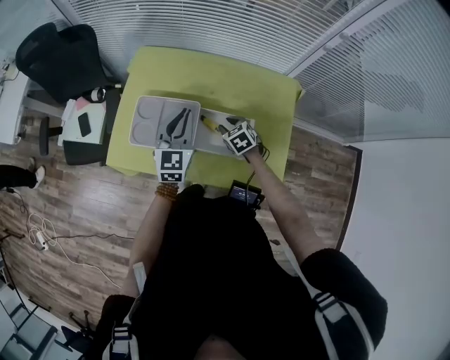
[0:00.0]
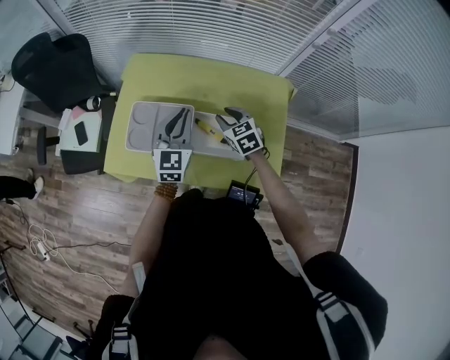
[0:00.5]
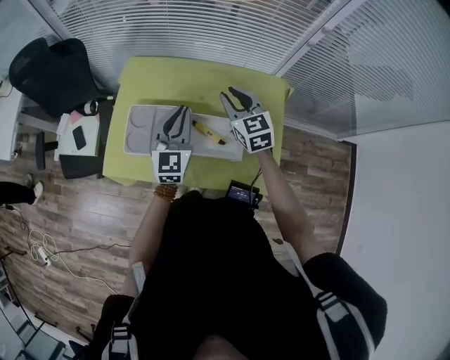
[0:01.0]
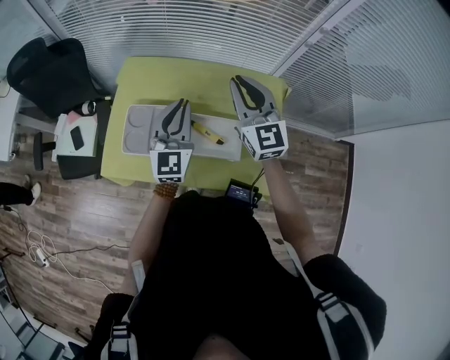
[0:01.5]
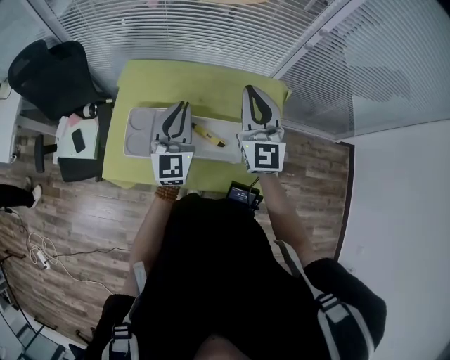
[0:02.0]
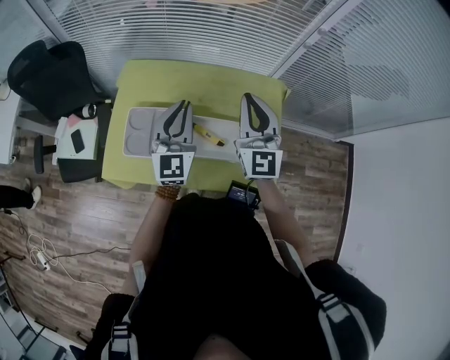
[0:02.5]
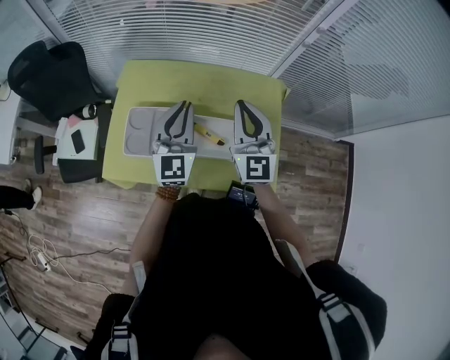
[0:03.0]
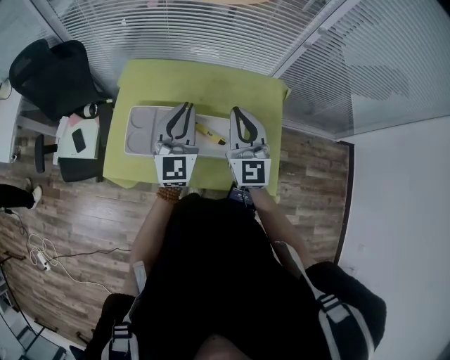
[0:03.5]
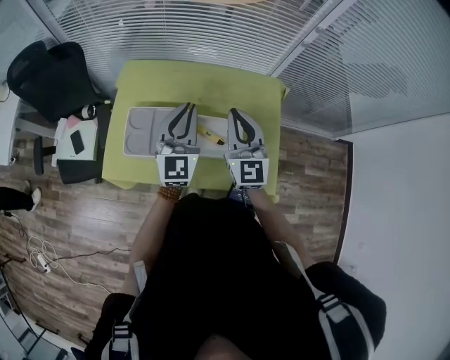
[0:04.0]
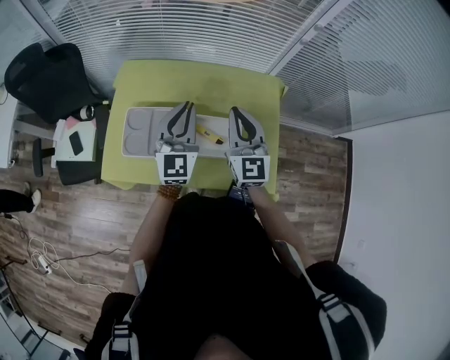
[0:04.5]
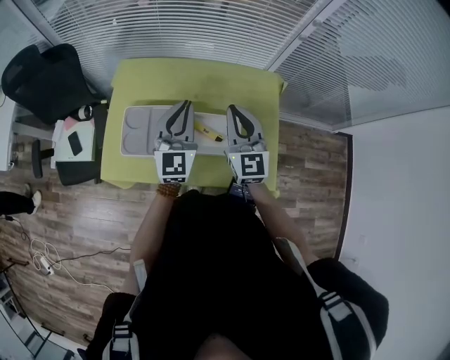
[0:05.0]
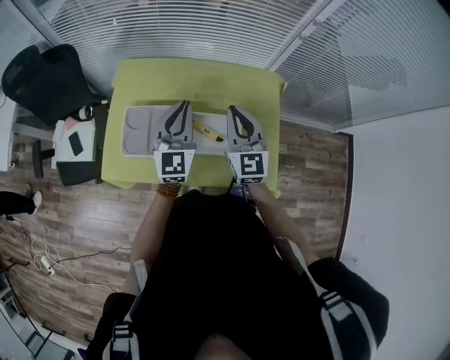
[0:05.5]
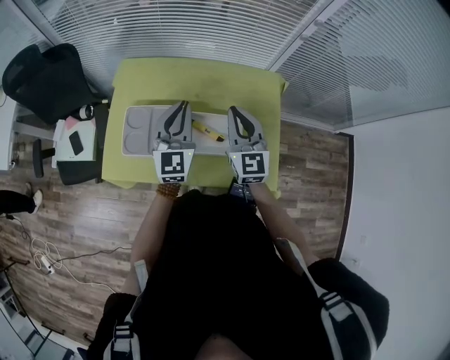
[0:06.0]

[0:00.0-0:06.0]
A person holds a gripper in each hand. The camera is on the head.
0:00.0 to 0:02.0: The right gripper is displaced upward by about 35 cm, tilts its fingers roughly 60 degrees upward, and closes its fingers, while the left gripper moves upward, approximately 10 cm.
0:02.0 to 0:04.0: The right gripper is displaced downward by about 5 cm.
0:04.0 to 0:06.0: There are only small adjustments of the grippers.

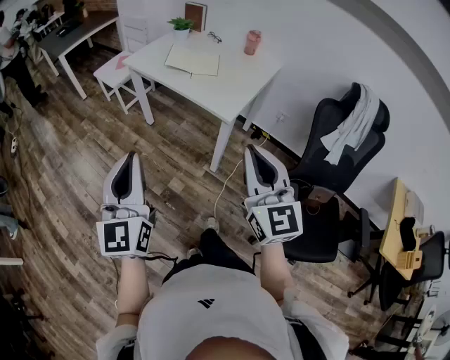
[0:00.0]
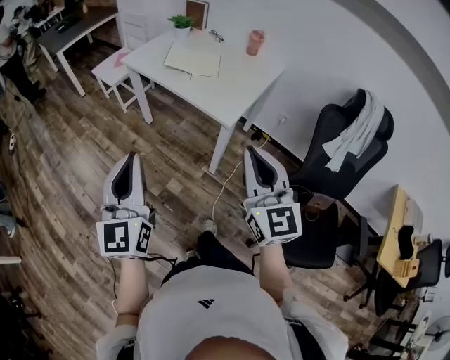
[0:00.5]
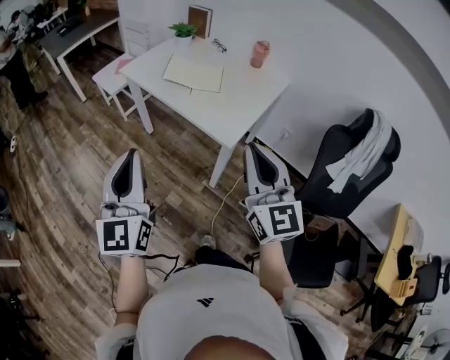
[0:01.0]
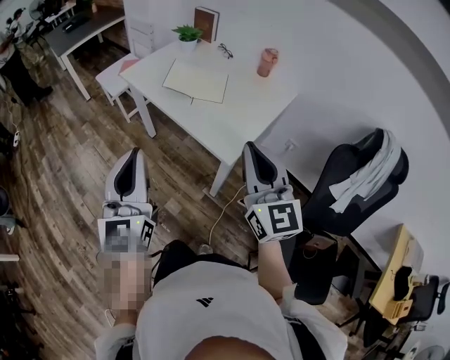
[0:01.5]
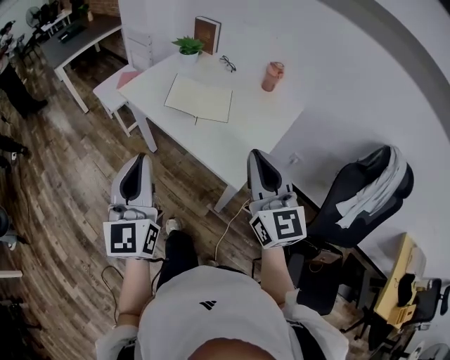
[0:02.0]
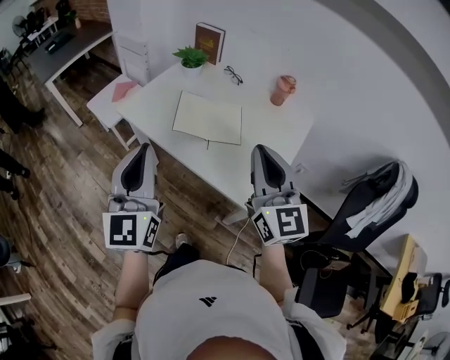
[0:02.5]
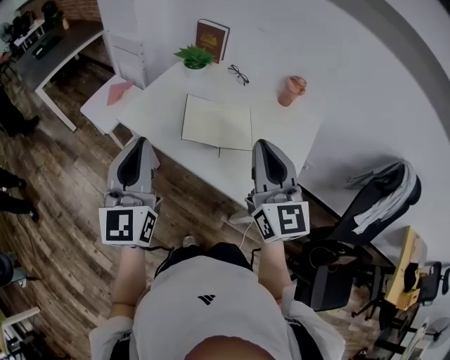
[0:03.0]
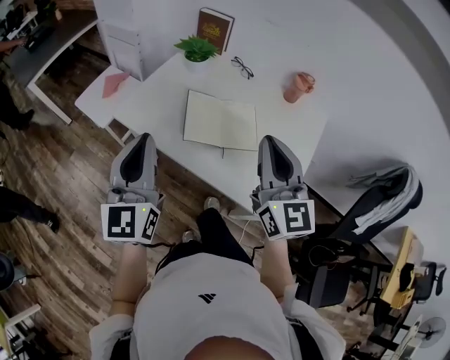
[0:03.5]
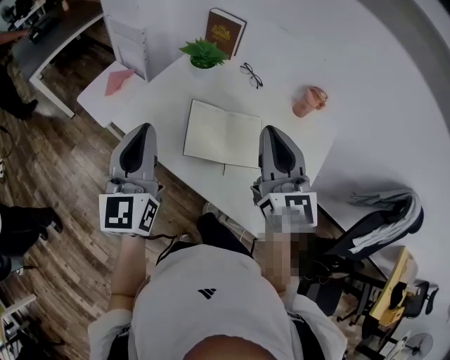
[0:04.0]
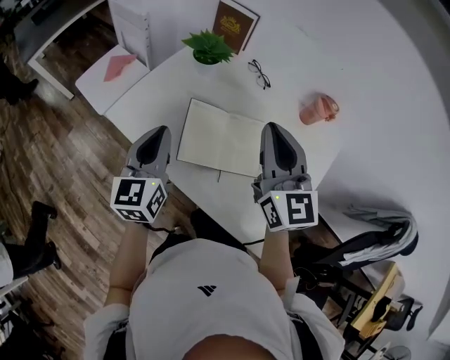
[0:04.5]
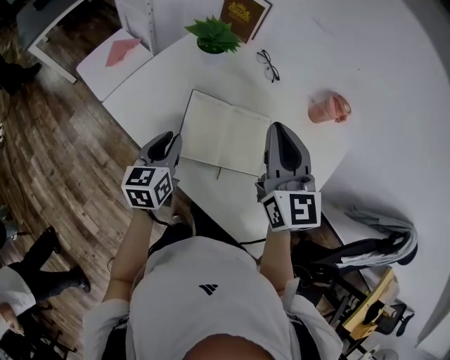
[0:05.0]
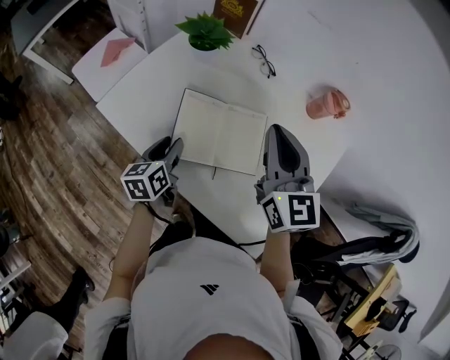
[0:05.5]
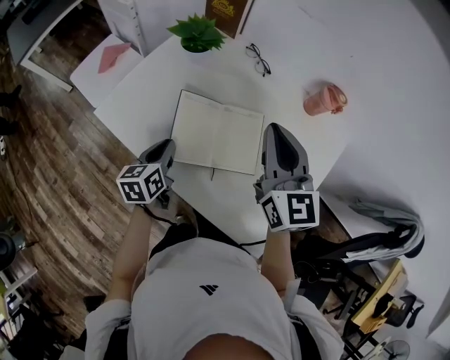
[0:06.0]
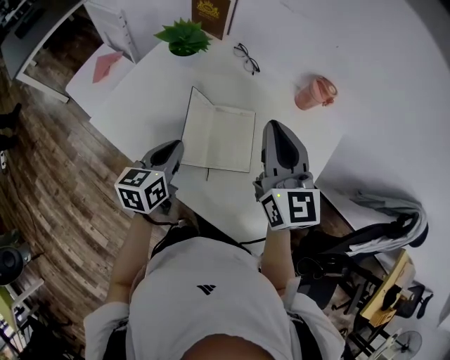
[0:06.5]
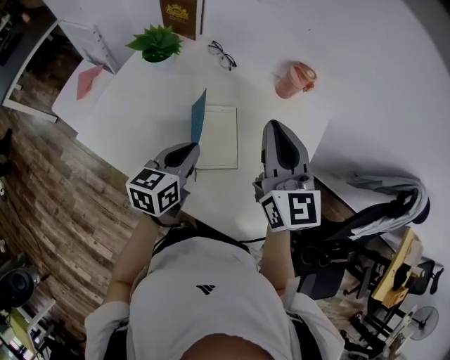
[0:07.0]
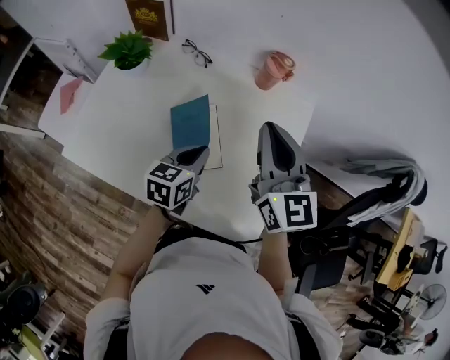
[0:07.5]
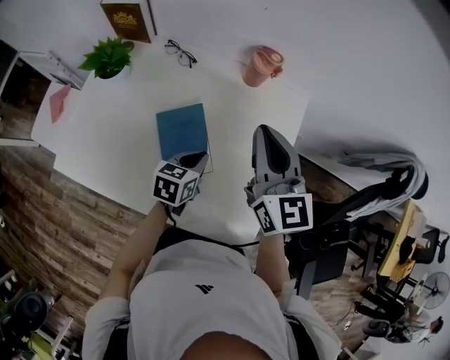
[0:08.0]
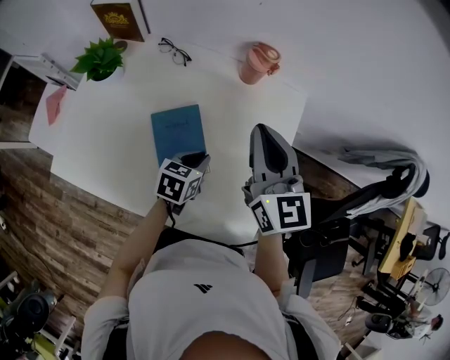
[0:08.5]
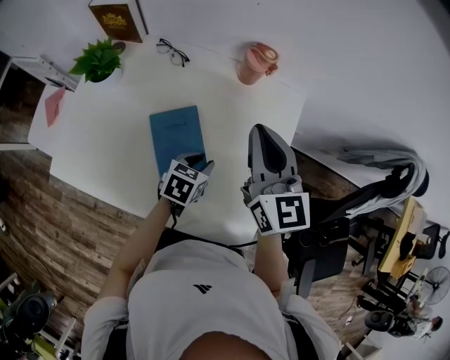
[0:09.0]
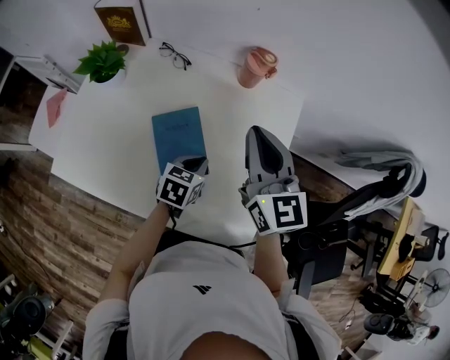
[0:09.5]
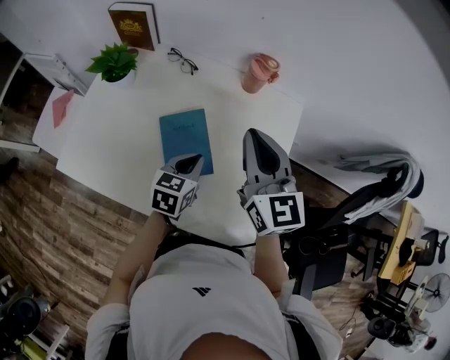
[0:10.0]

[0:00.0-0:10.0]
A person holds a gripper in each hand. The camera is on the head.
0:00.0 to 0:02.0: Both grippers travel together forward, roughly 30 cm.
0:02.0 to 0:04.0: The two grippers go about 35 cm forward.
0:04.0 to 0:06.0: The left gripper heads downward, covering about 25 cm, points its fingers about 40 degrees further downward, and opens and closes again. The right gripper shifts roughly 15 cm forward, downward and to the right.
0:06.0 to 0:08.0: The left gripper goes upward and returns, roughly 10 cm each way, and rotates some 40 degrees. Meanwhile the right gripper ends up some 15 cm from where it was.
0:08.0 to 0:10.0: The left gripper opens, then closes again.

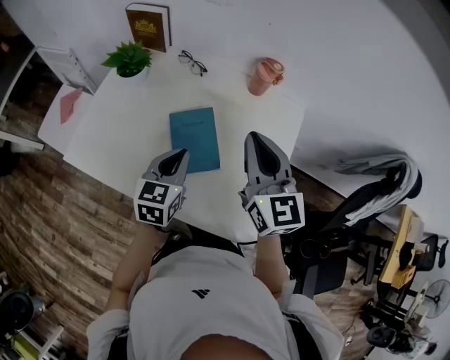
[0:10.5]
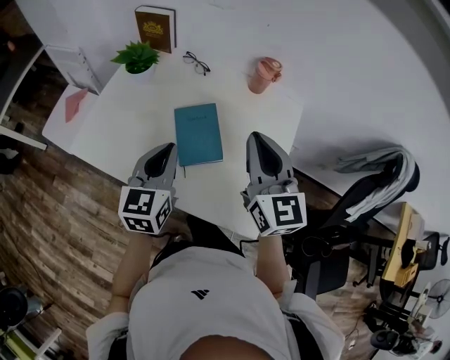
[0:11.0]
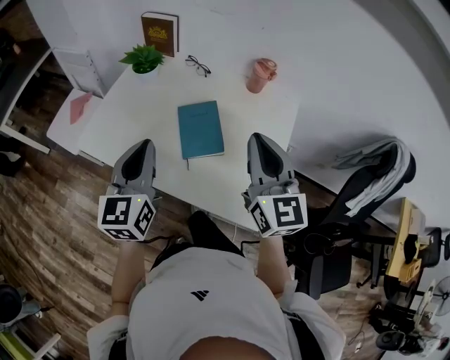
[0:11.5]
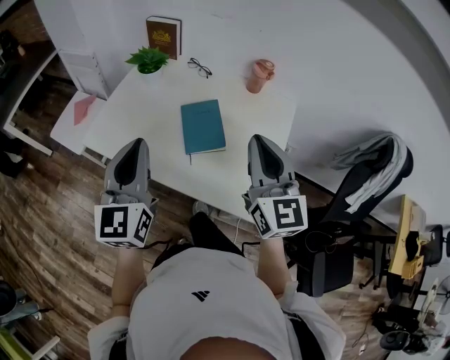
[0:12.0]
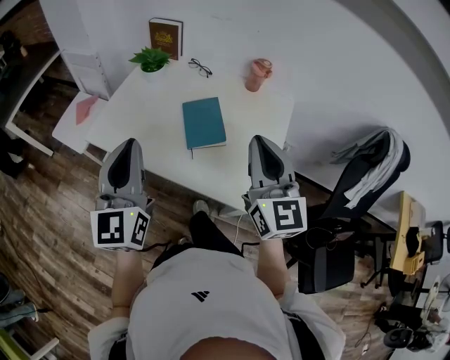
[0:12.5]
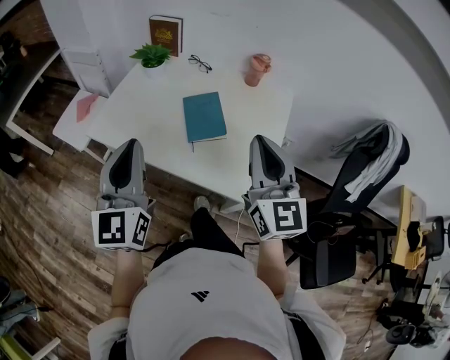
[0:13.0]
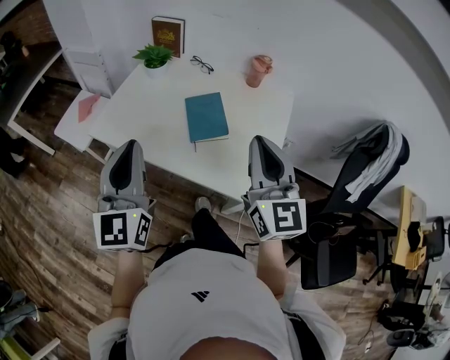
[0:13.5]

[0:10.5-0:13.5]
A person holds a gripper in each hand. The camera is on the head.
0:10.5 to 0:12.0: The left gripper is displaced upward, backward and to the left by approximately 25 cm, and changes its angle by about 30 degrees. The right gripper is displaced backward and upward by about 15 cm.
0:12.0 to 0:13.5: The two grippers go some 5 cm backward.

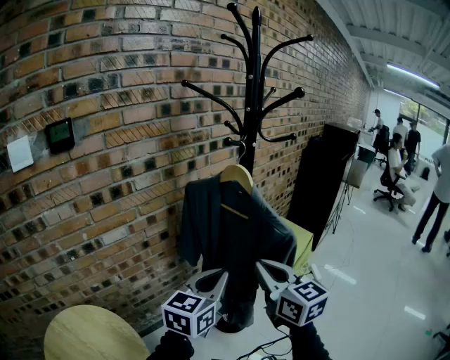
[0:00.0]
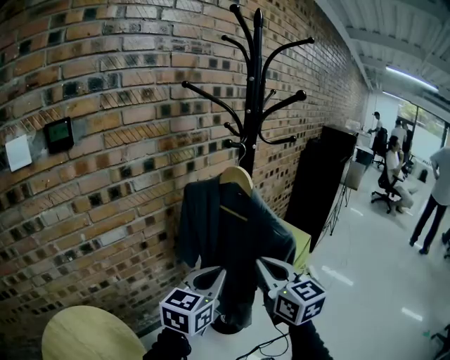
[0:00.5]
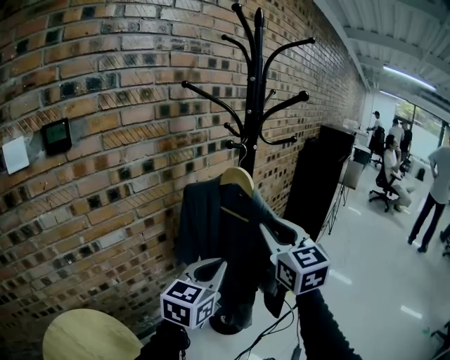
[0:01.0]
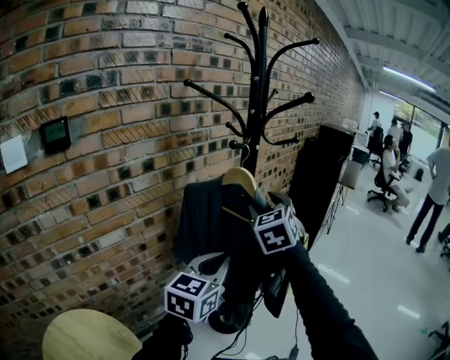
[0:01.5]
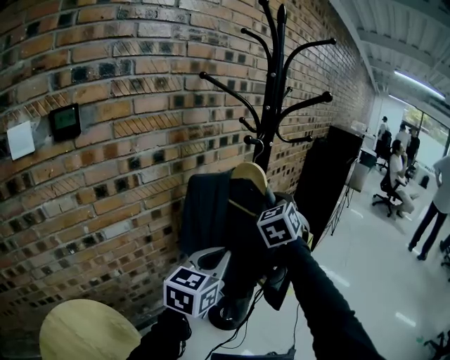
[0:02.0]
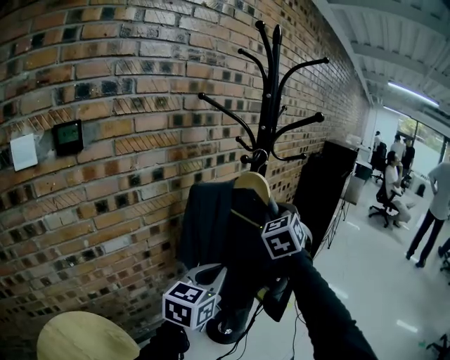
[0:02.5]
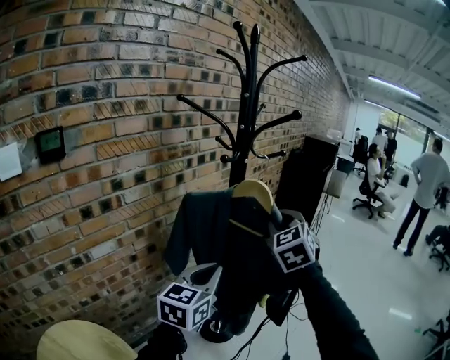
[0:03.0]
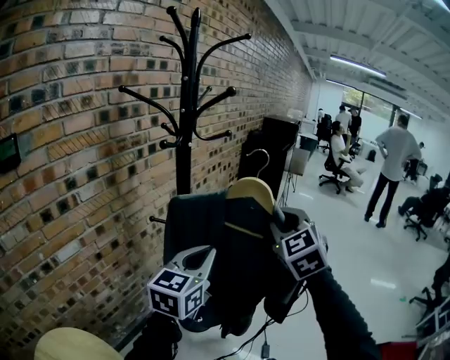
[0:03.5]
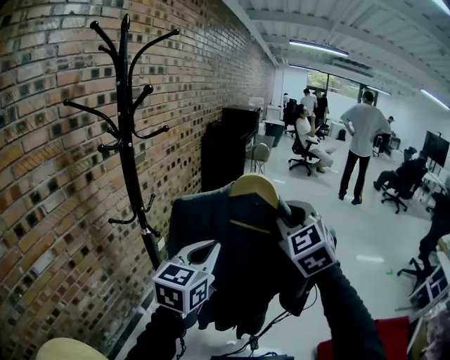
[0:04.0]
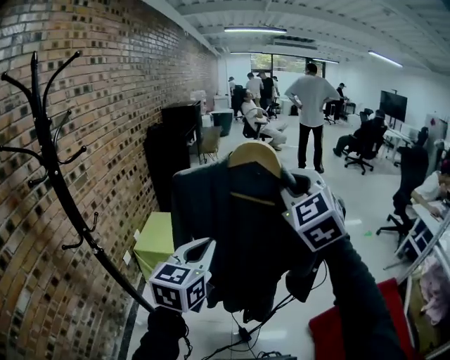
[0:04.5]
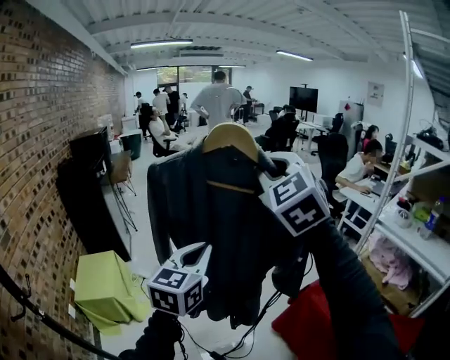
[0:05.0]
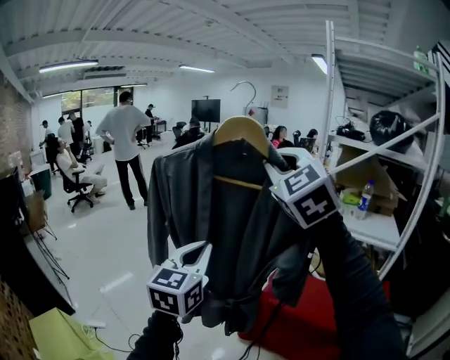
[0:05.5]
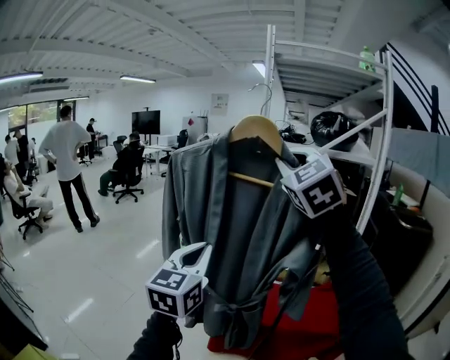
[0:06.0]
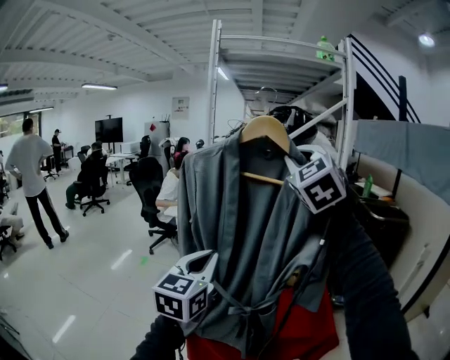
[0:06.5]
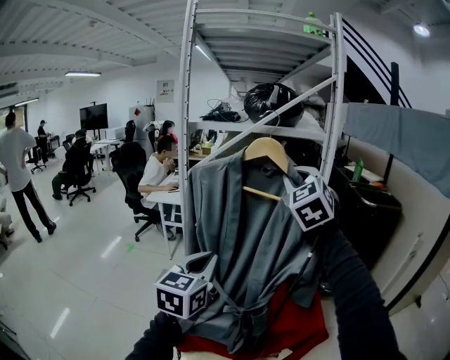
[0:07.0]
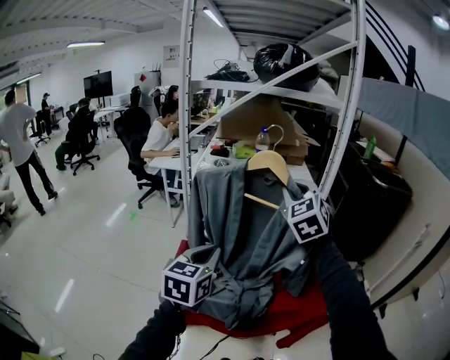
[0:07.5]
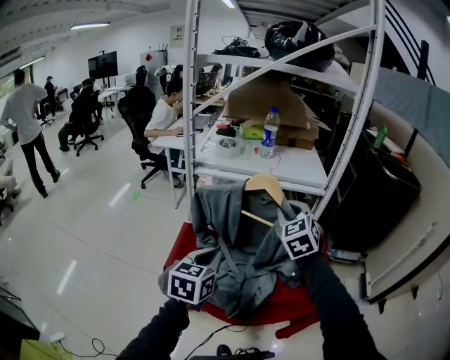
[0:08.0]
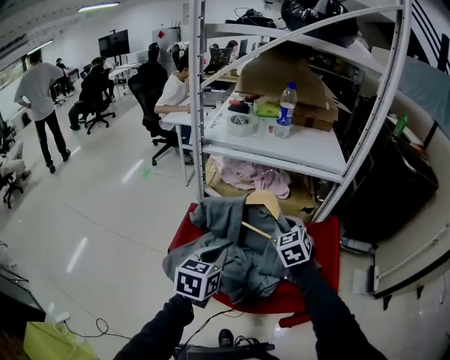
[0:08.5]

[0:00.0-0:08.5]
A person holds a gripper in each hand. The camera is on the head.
0:00.0 to 0:02.0: The left gripper shifts by some 5 cm. The right gripper travels forward by about 20 cm, swivels roughly 50 degrees, and opens and closes again.
0:02.0 to 0:04.0: The left gripper goes approximately 30 cm to the right, and swivels some 30 degrees, while the right gripper goes about 50 cm to the right and backward.
0:04.0 to 0:06.5: The pair of grippers is taken approximately 1 m. The left gripper swivels roughly 100 degrees. The right gripper swivels approximately 110 degrees.
0:06.5 to 0:08.5: The left gripper travels downward and forward by about 40 cm, and swivels approximately 30 degrees. The right gripper shifts some 70 cm downward and forward, and tilts its fingers roughly 40 degrees downward.
